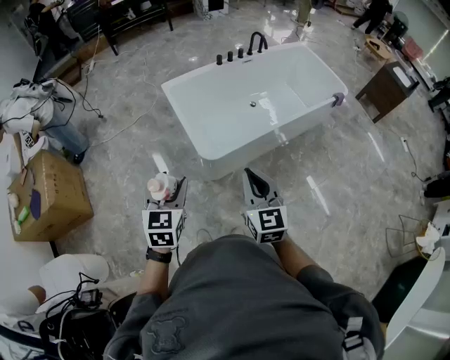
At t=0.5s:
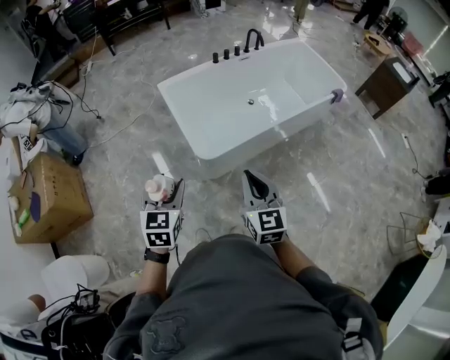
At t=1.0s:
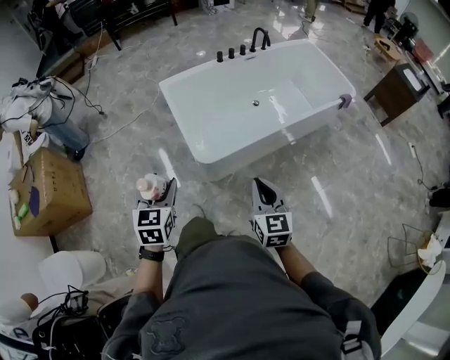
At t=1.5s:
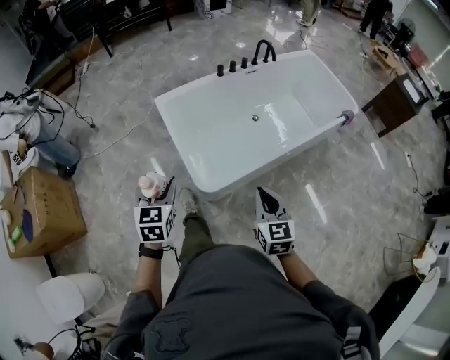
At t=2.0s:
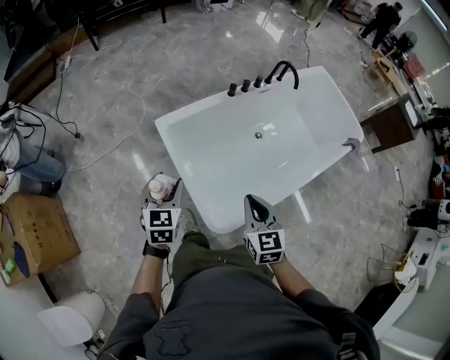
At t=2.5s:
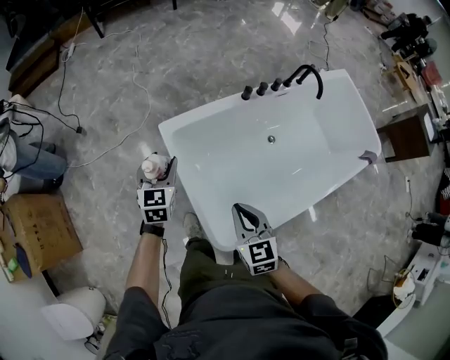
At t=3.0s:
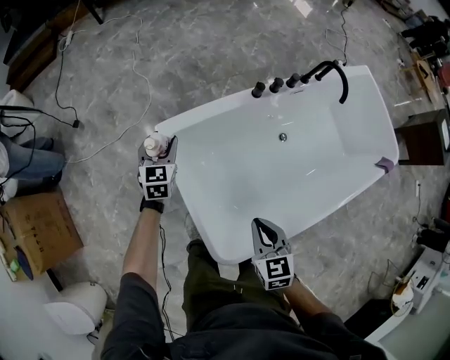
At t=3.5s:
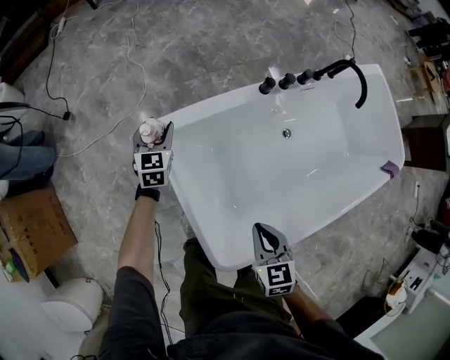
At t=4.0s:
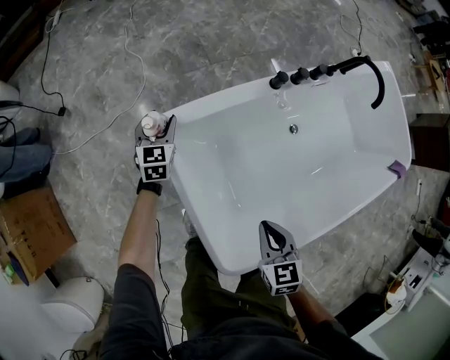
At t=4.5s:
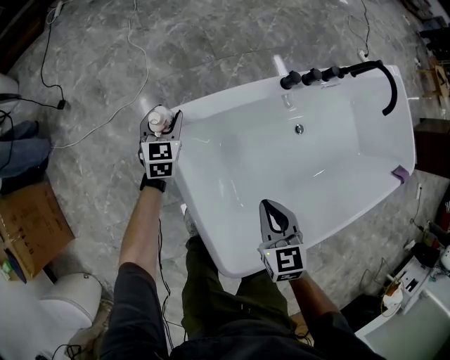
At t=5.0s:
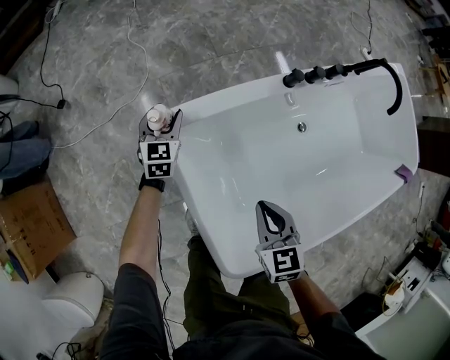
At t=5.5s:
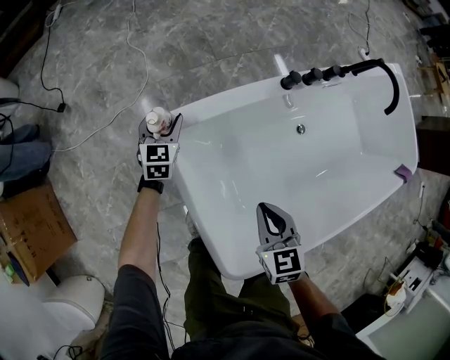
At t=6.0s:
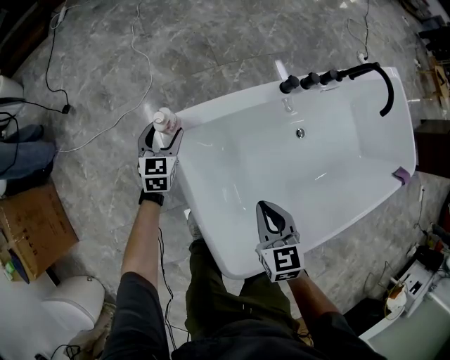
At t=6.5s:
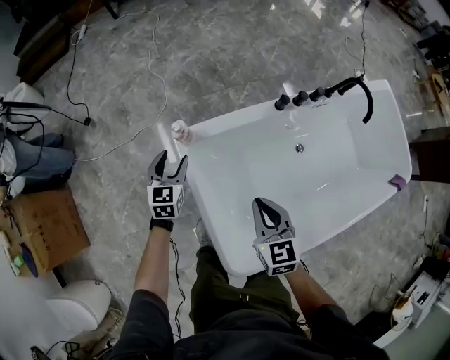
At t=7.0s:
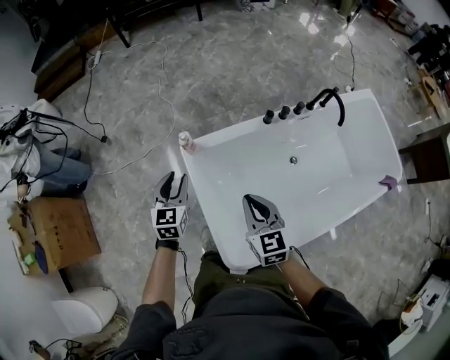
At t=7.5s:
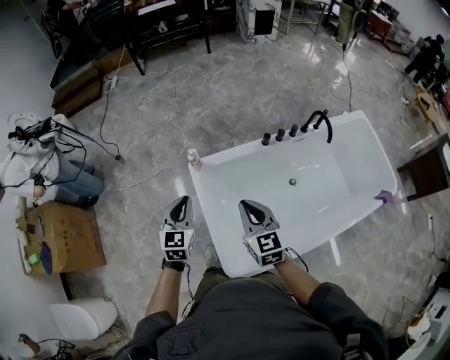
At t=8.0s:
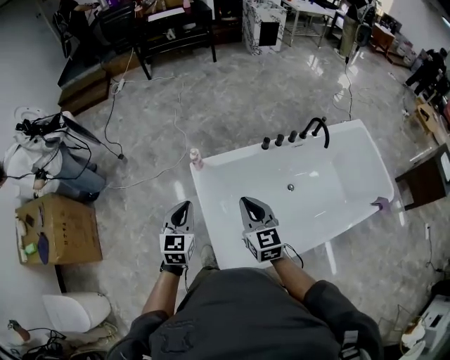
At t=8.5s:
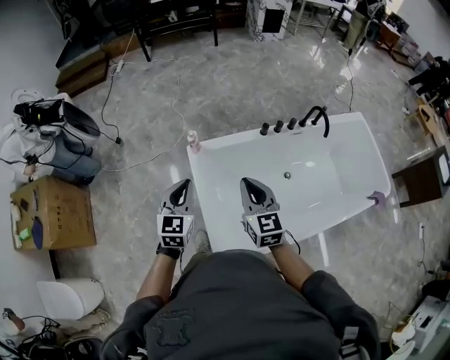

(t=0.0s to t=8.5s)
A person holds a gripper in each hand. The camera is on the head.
t=0.0s - t=2.0s: The pair of grippers is taken forward, roughly 50 cm.
t=2.0s - t=4.0s: The right gripper travels downward and forward by approximately 30 cm, and swivels approximately 20 degrees. The left gripper travels forward and downward by approximately 50 cm.
t=4.0s - t=6.5s: The left gripper shifts approximately 15 cm backward and upward. The right gripper shifts roughly 10 cm upward and forward.
t=6.5s - t=8.5s: The left gripper goes roughly 40 cm upward and backward, and closes; the right gripper travels upward and backward by about 25 cm.

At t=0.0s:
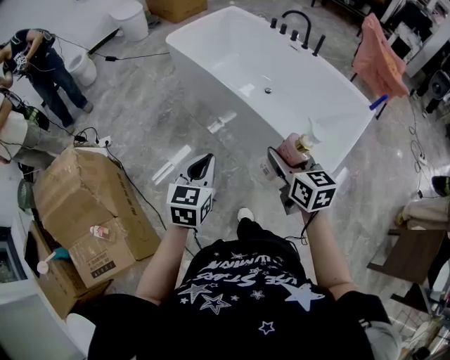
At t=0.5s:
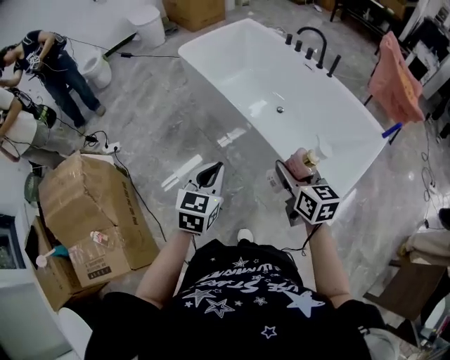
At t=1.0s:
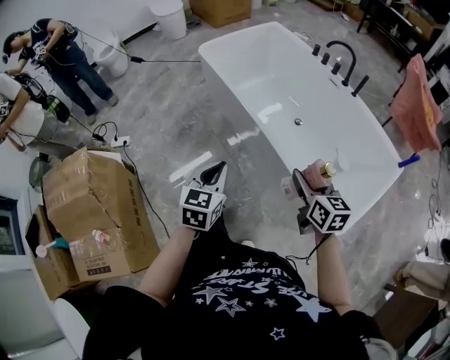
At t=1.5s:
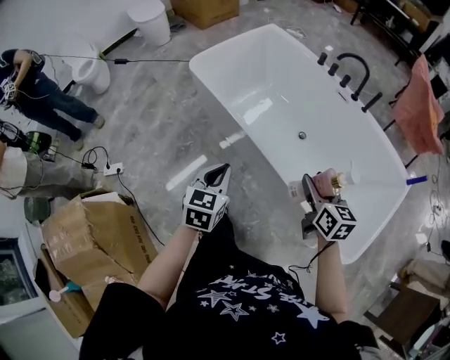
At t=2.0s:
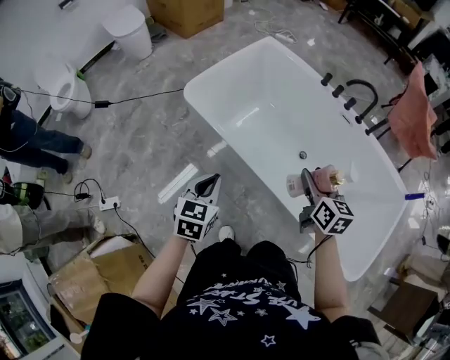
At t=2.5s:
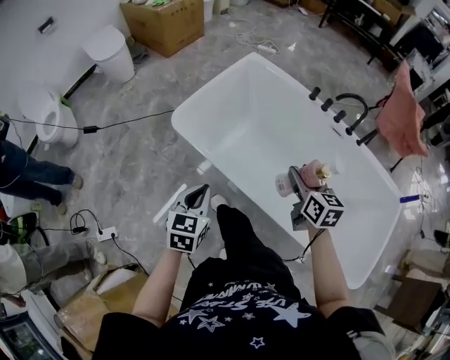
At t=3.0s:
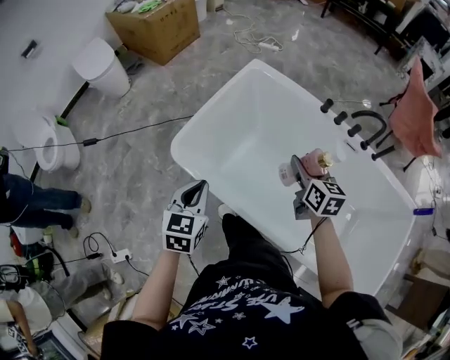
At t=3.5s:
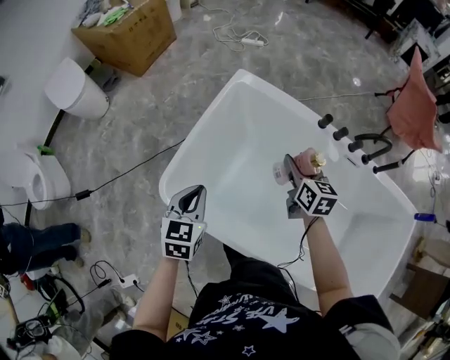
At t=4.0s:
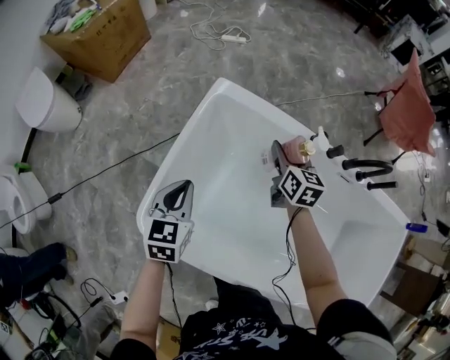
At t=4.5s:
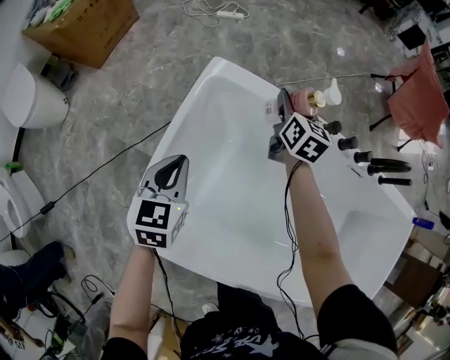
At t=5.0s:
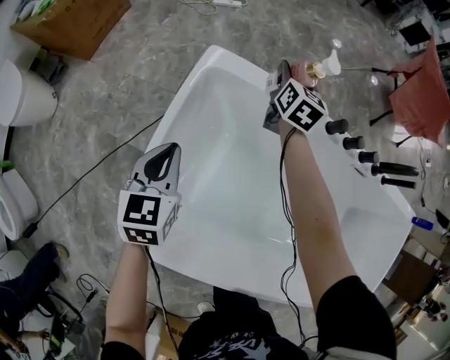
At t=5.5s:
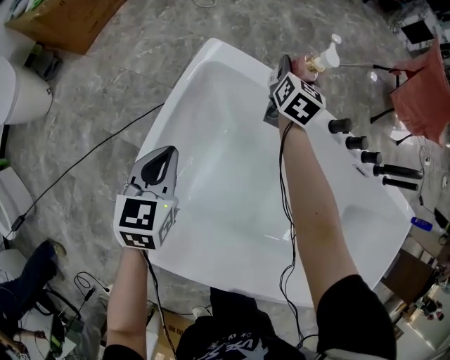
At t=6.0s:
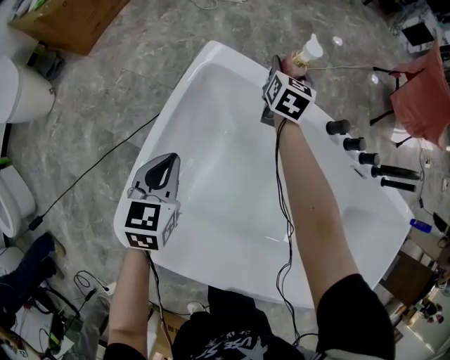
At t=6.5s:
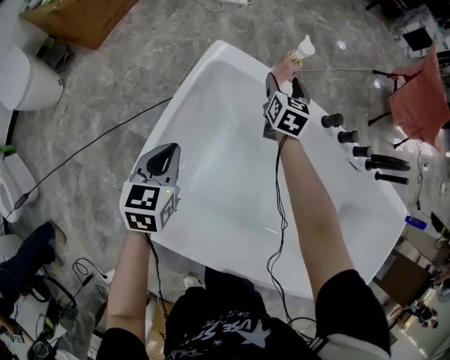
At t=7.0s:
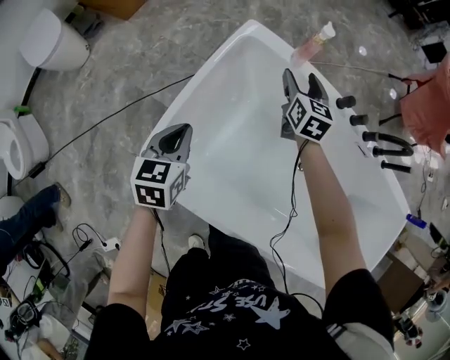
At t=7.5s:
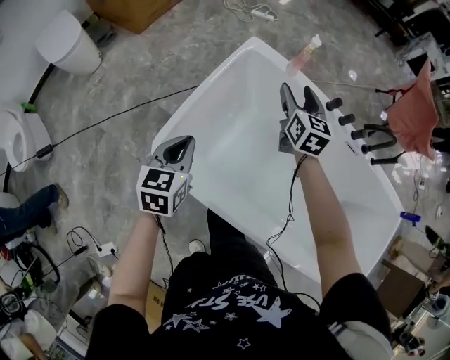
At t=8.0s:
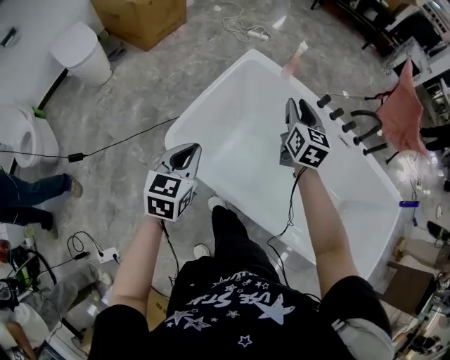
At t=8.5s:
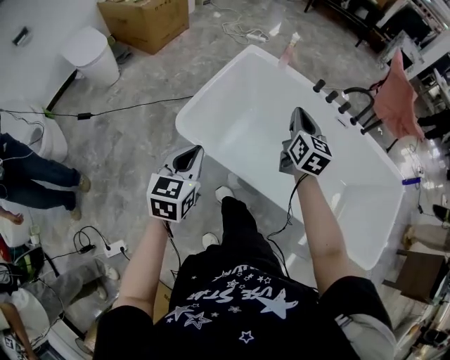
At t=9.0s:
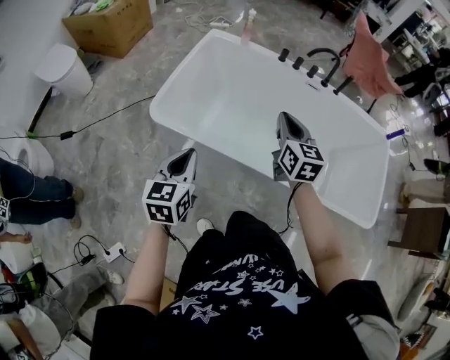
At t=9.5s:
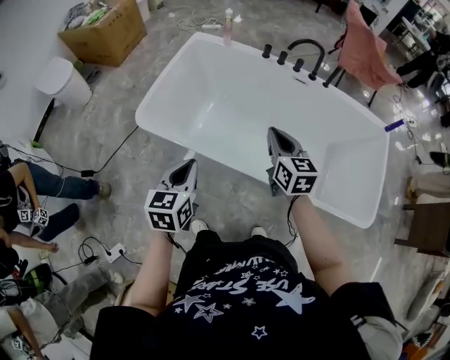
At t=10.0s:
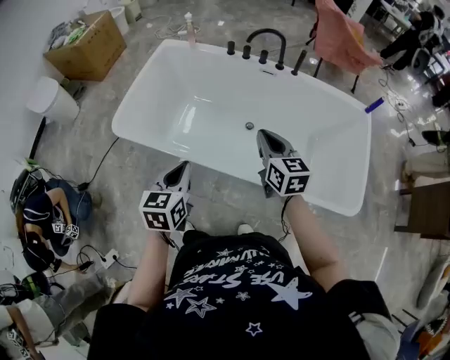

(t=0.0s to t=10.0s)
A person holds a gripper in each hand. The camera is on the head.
t=0.0s - t=2.0s: The two grippers travel together, forward, approximately 60 cm.
t=2.0s - t=4.0s: The pair of grippers is taken forward, approximately 60 cm.
t=4.0s - t=6.0s: The right gripper travels forward and downward by roughly 25 cm; the left gripper shifts some 15 cm downward and forward.
t=6.0s - t=8.0s: Both grippers move backward and upward, about 50 cm. The right gripper changes its angle by roughly 20 degrees.
t=8.0s - t=10.0s: Both grippers are carried to the right and backward, roughly 50 cm. The right gripper closes.

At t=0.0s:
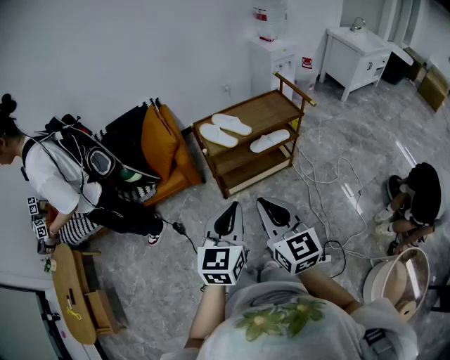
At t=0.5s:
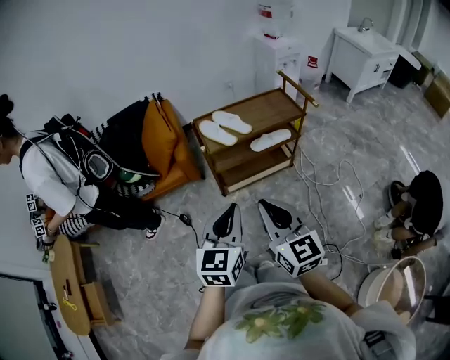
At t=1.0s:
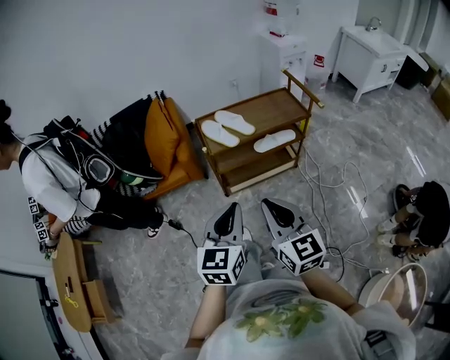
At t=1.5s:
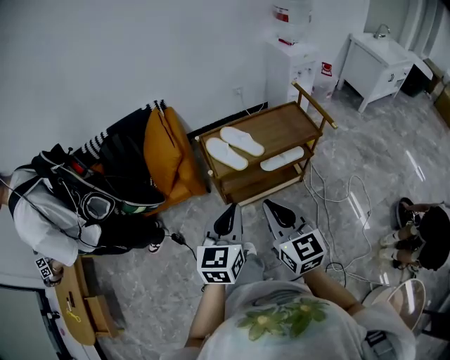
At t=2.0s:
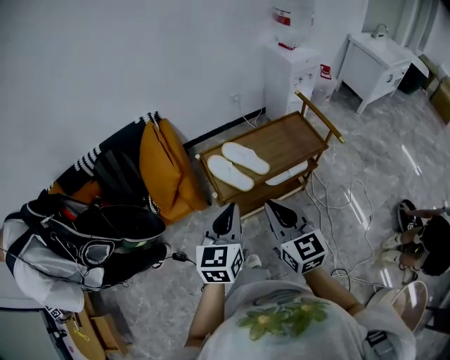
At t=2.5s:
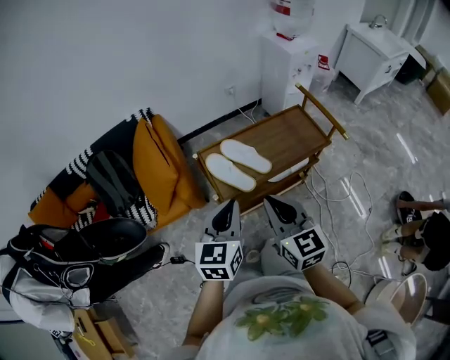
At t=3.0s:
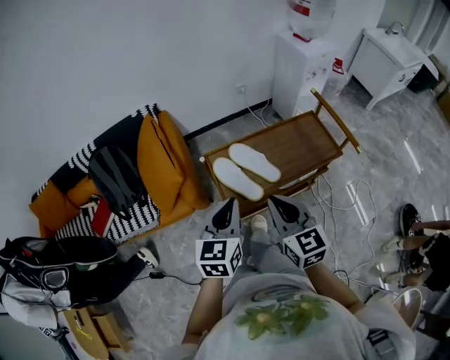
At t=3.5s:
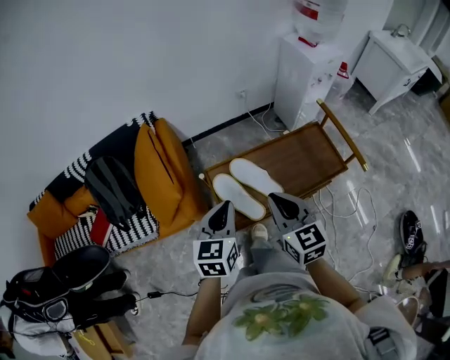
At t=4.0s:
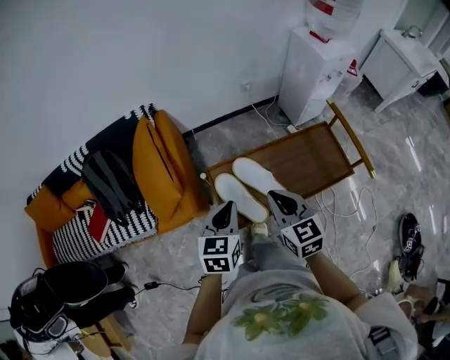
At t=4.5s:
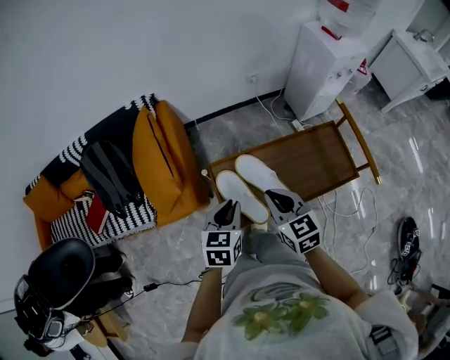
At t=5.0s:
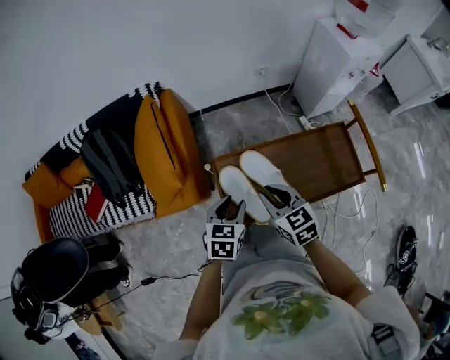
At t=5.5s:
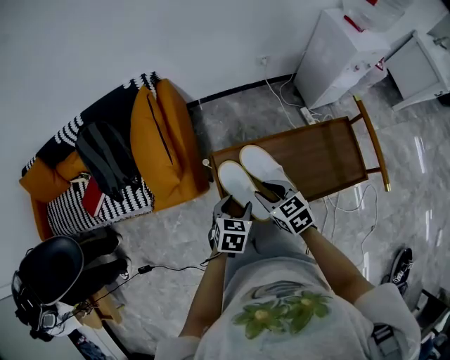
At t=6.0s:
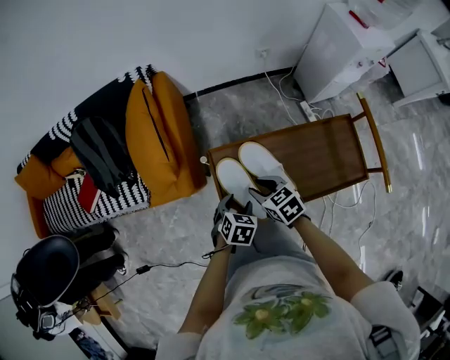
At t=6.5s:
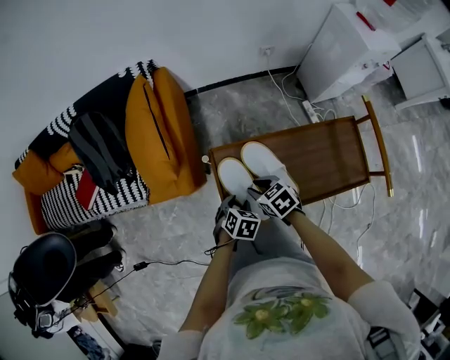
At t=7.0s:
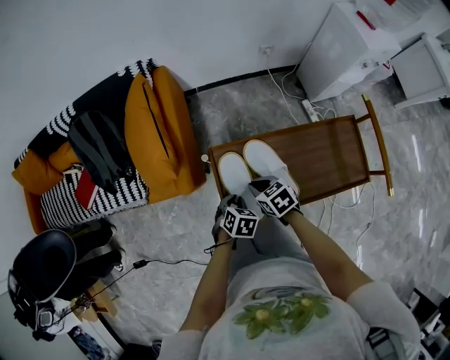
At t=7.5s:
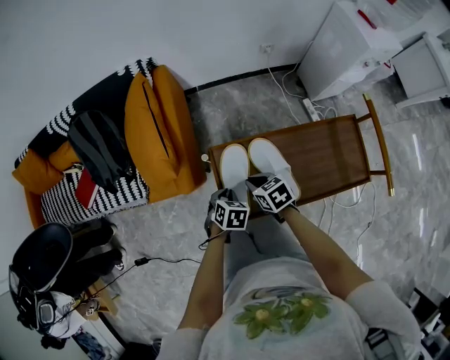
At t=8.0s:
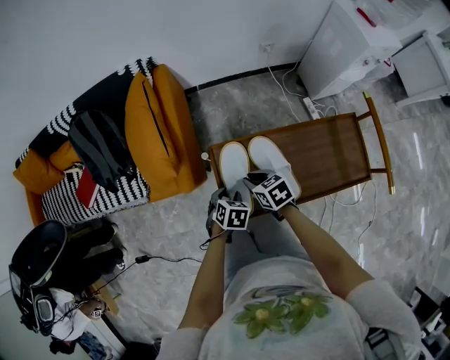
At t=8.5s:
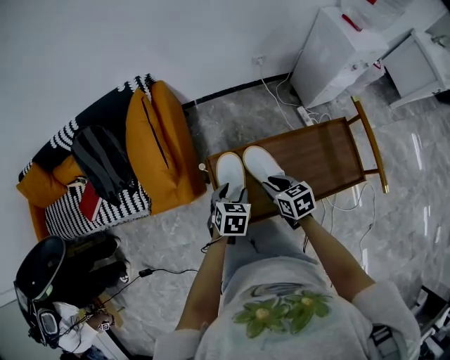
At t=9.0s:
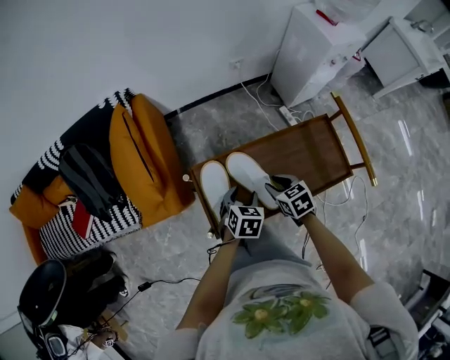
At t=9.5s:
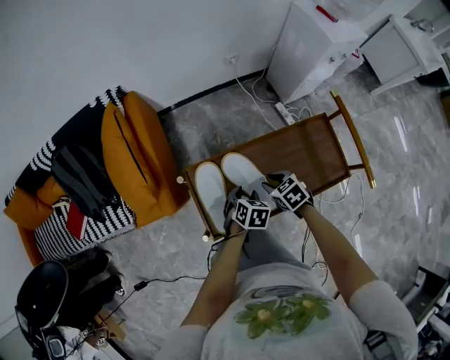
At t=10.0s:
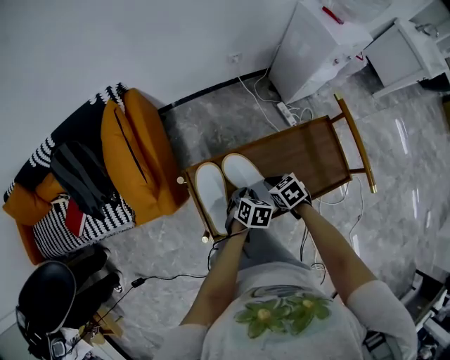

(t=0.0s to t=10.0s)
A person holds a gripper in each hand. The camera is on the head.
t=0.0s - t=2.0s: Both grippers move forward, approximately 30 cm.
t=2.0s - t=4.0s: The two grippers go approximately 25 cm forward and downward.
t=4.0s - t=6.0s: The two grippers go some 20 cm downward. The right gripper turns by approximately 40 degrees, and opens up, while the left gripper angles its fingers downward, by some 30 degrees, and opens.
t=6.0s - t=8.0s: The left gripper moves about 5 cm, and closes and opens again. The right gripper ends up roughly 5 cm from where it was.
t=8.0s - t=10.0s: The two grippers go roughly 15 cm to the right.
